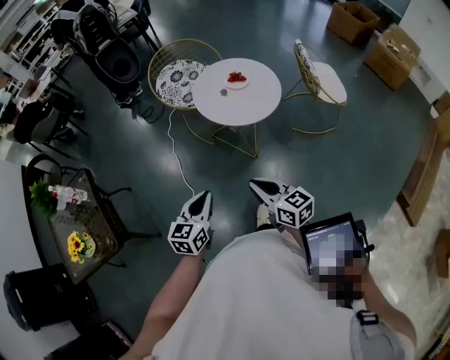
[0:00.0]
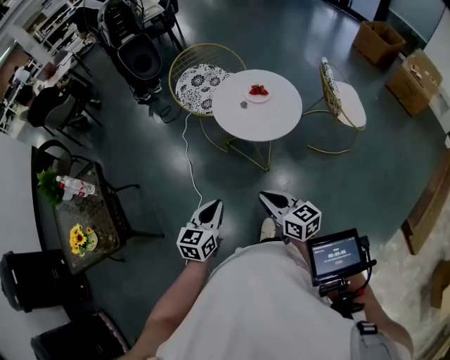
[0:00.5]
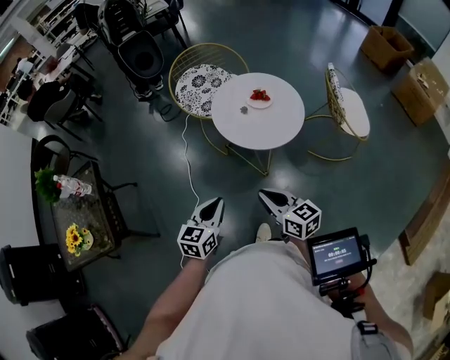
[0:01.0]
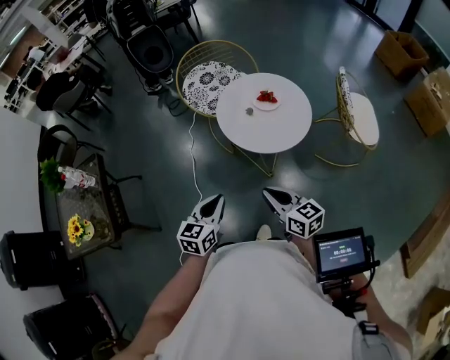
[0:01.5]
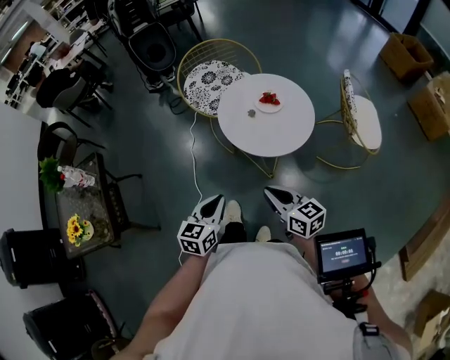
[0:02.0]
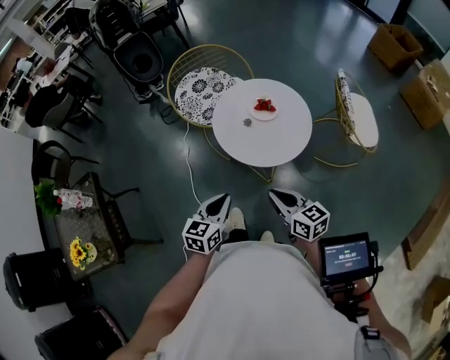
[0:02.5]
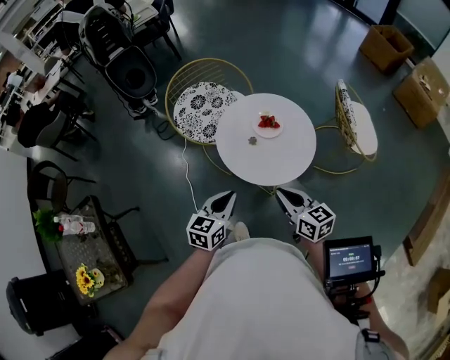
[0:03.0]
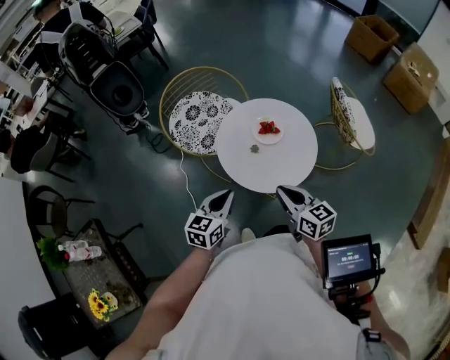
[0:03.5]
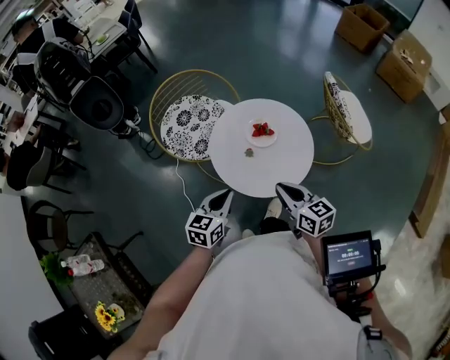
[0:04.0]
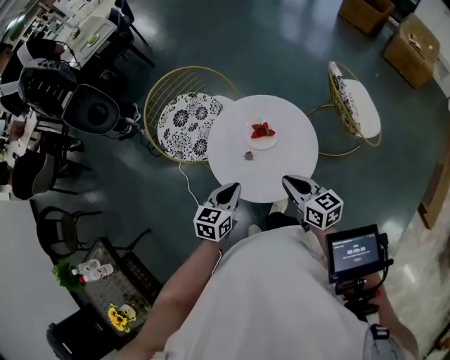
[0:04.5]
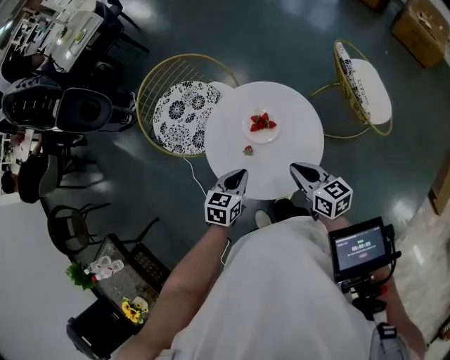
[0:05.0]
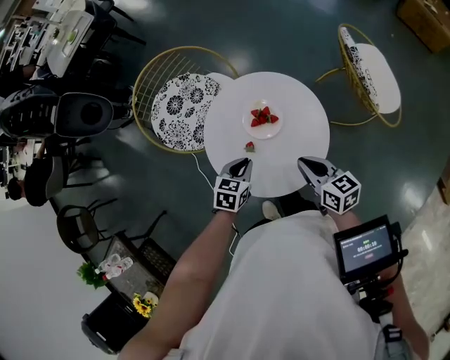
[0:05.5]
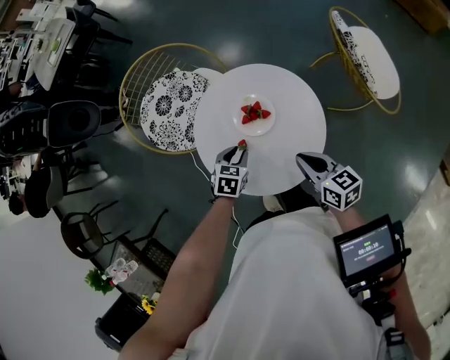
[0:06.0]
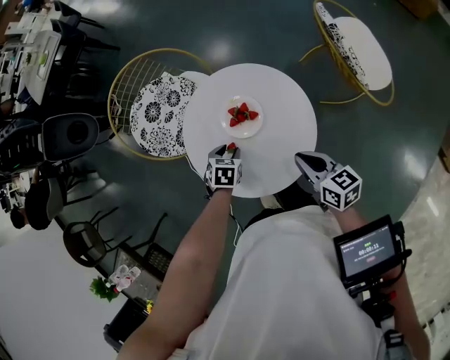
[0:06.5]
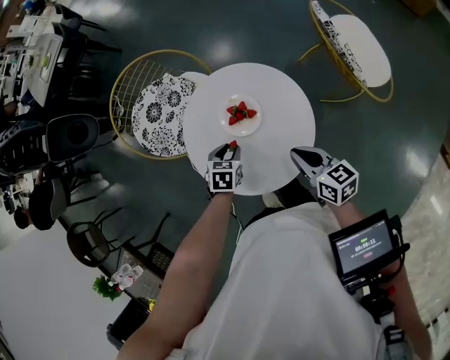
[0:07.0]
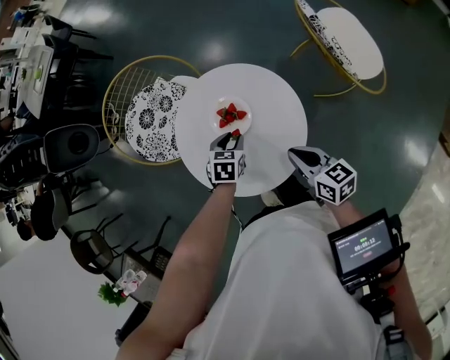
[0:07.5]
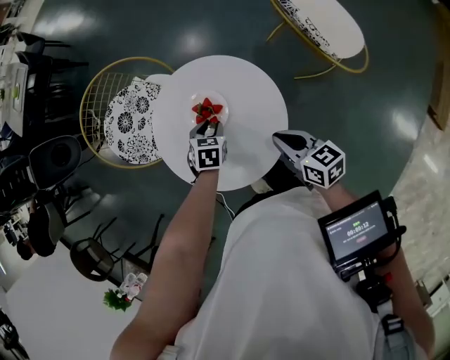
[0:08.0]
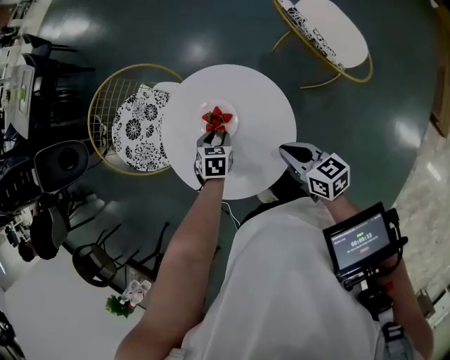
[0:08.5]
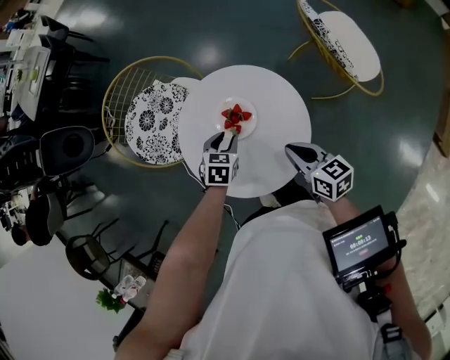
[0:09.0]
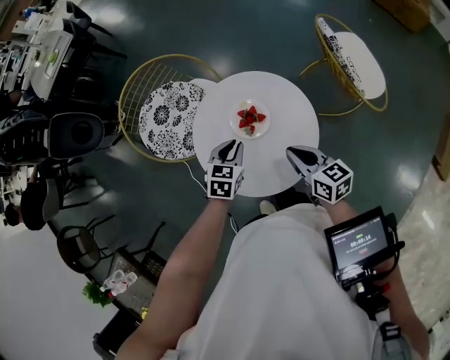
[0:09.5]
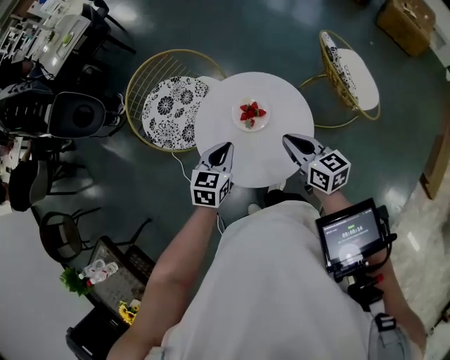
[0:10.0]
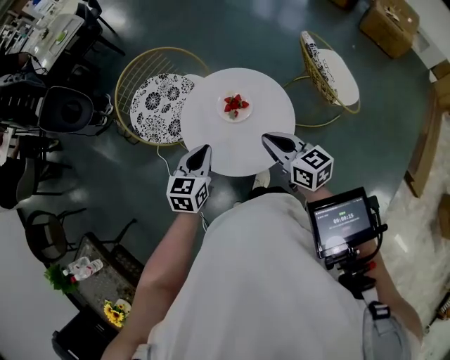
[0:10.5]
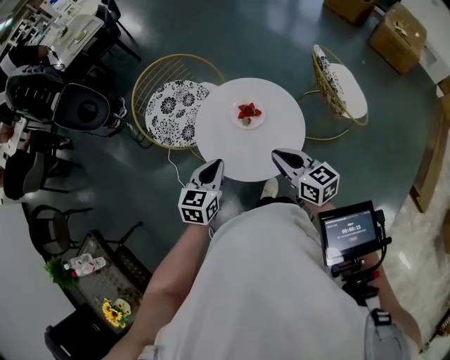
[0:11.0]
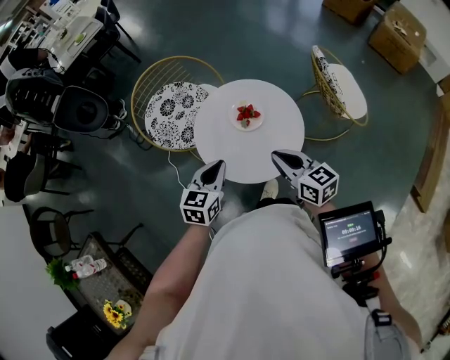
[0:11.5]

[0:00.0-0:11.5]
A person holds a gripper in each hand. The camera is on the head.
0:00.0 to 0:02.0: The two grippers go some 15 cm forward and to the right.
0:02.0 to 0:04.0: The grippers both shift forward by approximately 25 cm. The left gripper changes its angle by approximately 20 degrees. The right gripper turns by some 20 degrees.
0:04.0 to 0:06.0: The left gripper travels downward, forward and to the right by about 30 cm, tips its fingers downward by roughly 30 degrees, and opens its fingers, while the right gripper travels forward, downward and to the right by some 20 cm.
0:06.0 to 0:07.5: The left gripper is displaced to the right by approximately 10 cm, while the right gripper moves some 5 cm.
0:07.5 to 0:09.5: The right gripper goes roughly 10 cm to the left and upward. The left gripper is displaced upward and to the left by approximately 10 cm.
0:09.5 to 0:11.5: The left gripper moves backward, upward and to the left, roughly 20 cm, and swivels about 20 degrees. The right gripper travels upward, backward and to the left by roughly 15 cm.

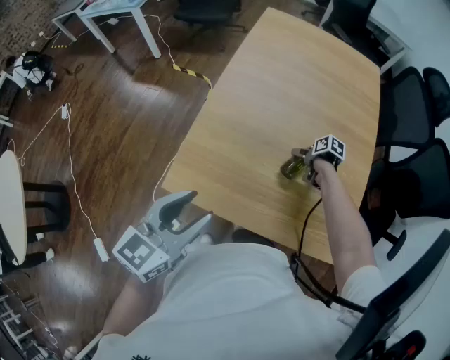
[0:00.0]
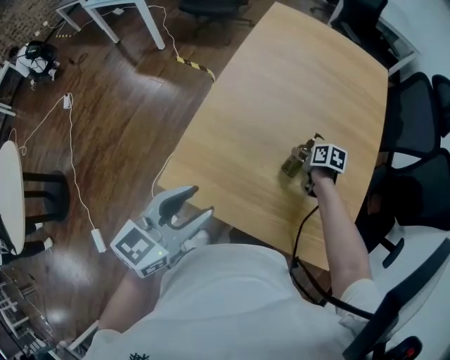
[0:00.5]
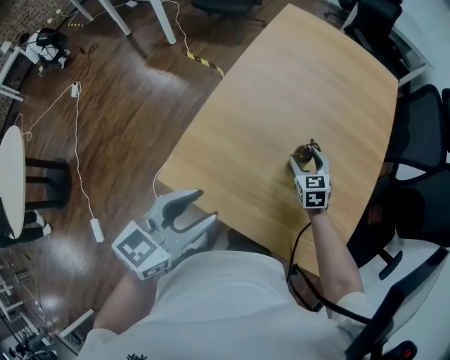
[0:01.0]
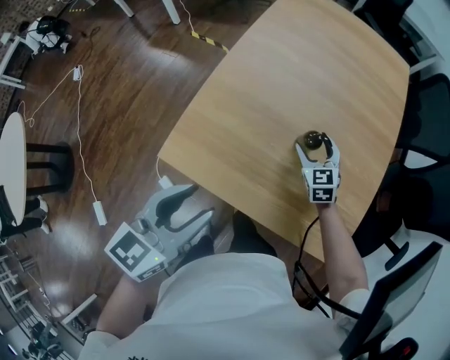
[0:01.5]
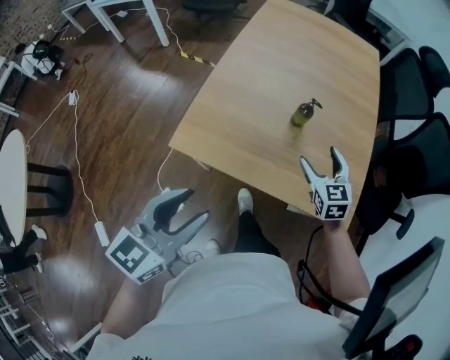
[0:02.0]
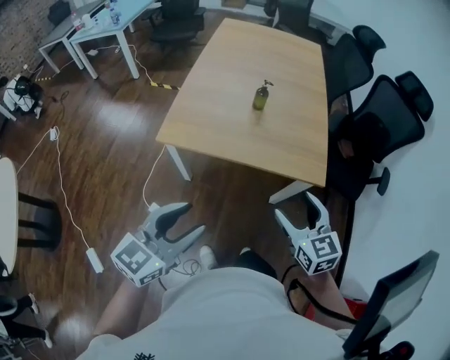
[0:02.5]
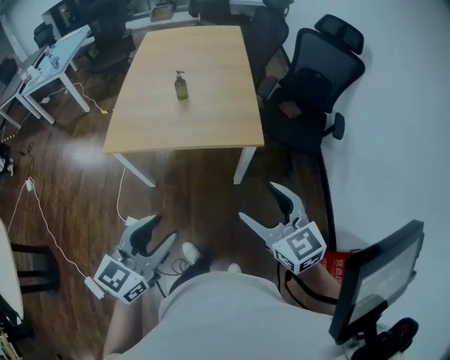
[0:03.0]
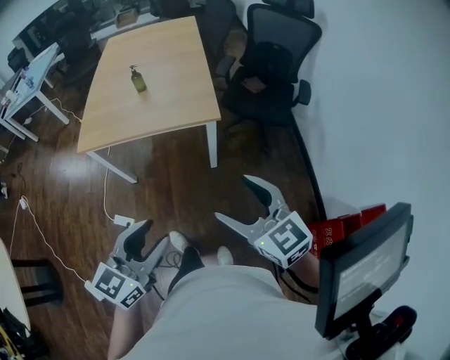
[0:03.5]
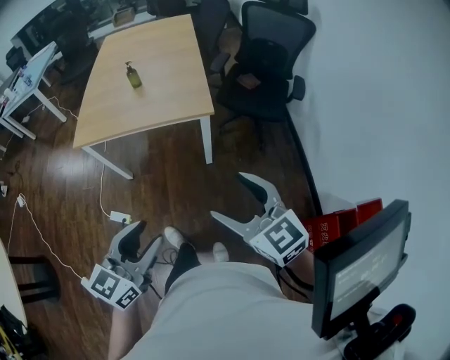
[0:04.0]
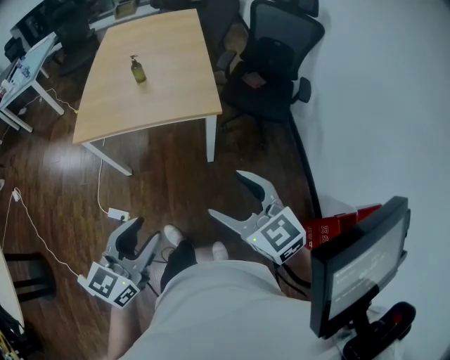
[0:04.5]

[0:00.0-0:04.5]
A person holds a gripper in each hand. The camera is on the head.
0:00.0 to 0:02.0: The right gripper goes about 25 cm upward and backward, and tilts its fingers some 30 degrees upward, while the left gripper travels backward by about 10 cm.
0:02.0 to 0:04.5: The left gripper is displaced backward and to the right by roughly 35 cm, and turns by about 20 degrees; the right gripper moves backward, some 50 cm.

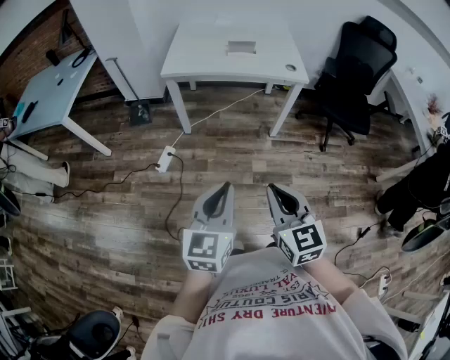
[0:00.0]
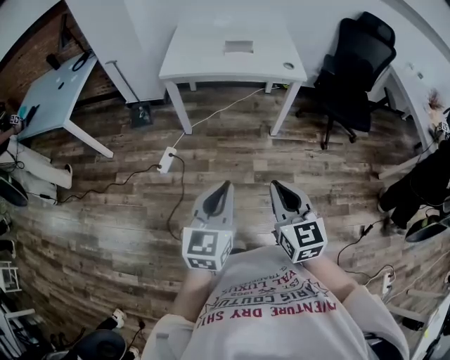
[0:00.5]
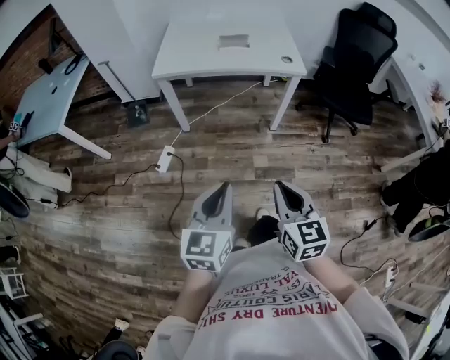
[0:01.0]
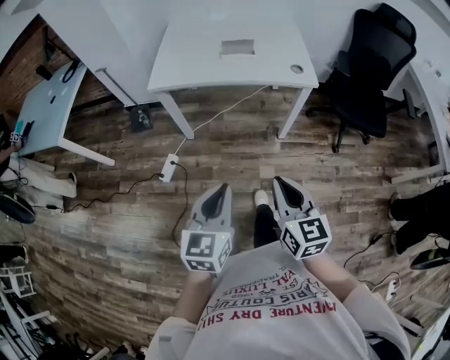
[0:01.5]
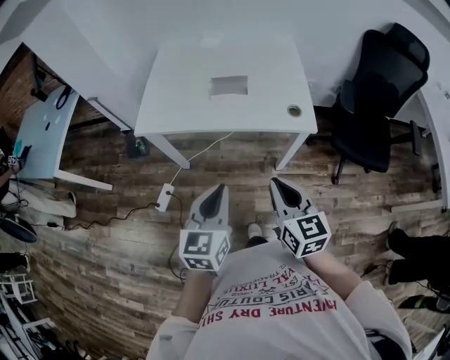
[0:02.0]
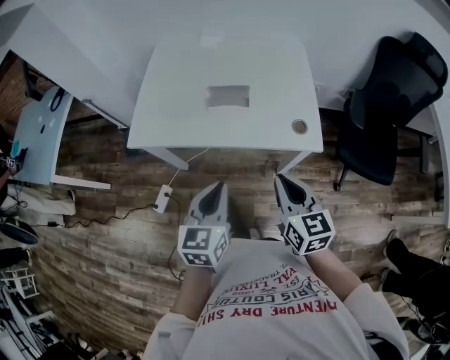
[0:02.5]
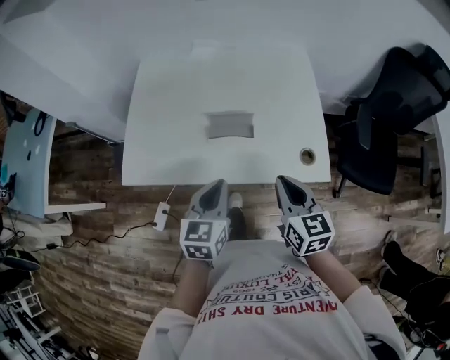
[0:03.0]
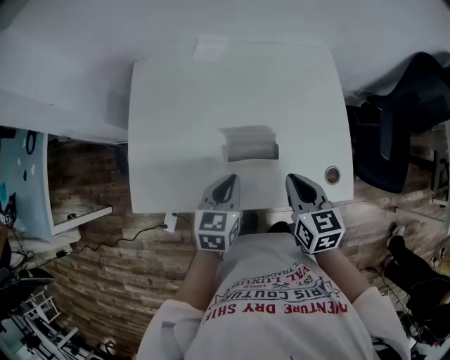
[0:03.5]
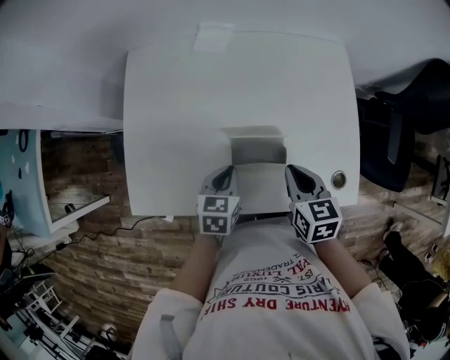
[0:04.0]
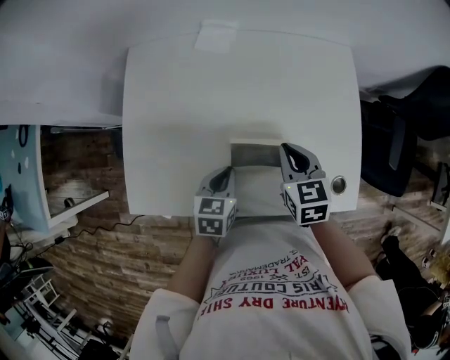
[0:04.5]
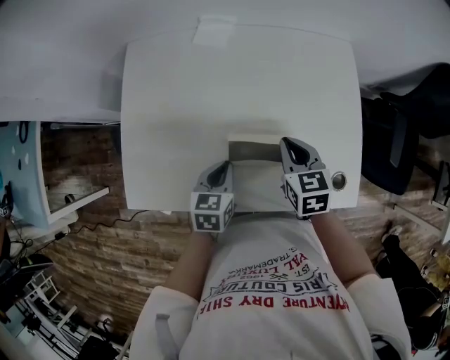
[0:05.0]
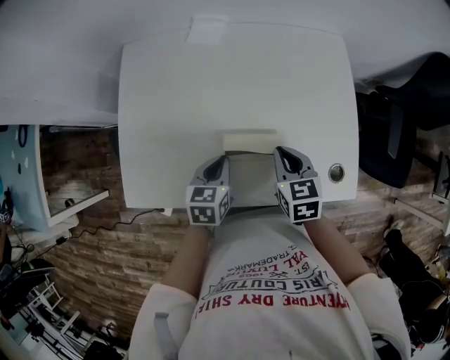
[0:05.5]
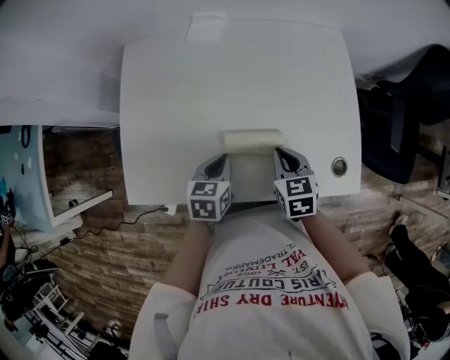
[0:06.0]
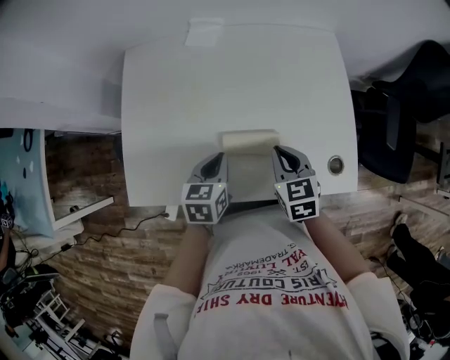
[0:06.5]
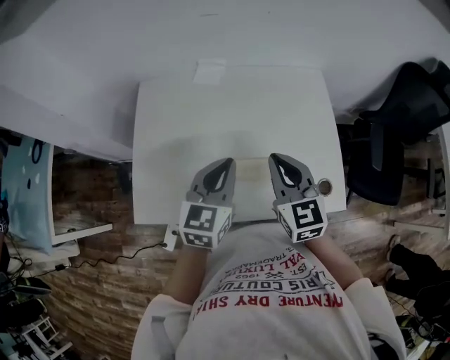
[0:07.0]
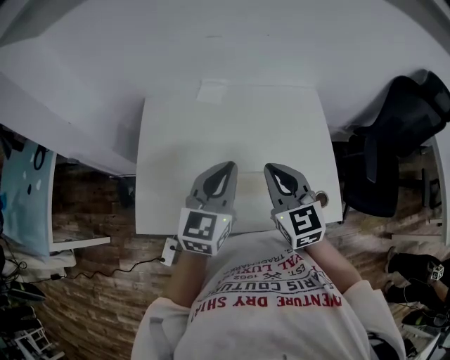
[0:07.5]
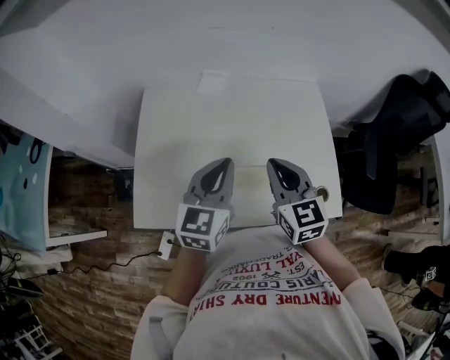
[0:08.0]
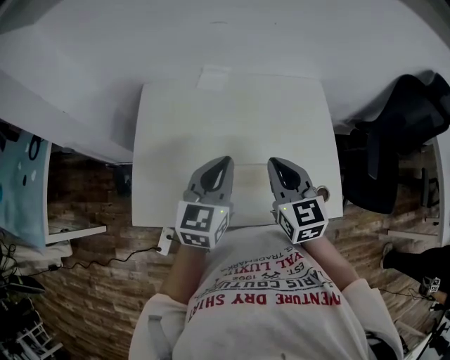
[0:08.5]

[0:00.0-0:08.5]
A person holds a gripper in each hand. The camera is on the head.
0:00.0 to 0:02.0: The grippers both shift forward by some 35 cm.
0:02.0 to 0:04.0: The left gripper moves forward and downward, some 50 cm, and turns by some 30 degrees. The right gripper travels forward by approximately 40 cm, and changes its angle by roughly 30 degrees.
0:06.5 to 0:08.5: Both grippers travel together upward, roughly 15 cm. The left gripper rotates approximately 30 degrees, while the right gripper changes its angle by some 20 degrees.

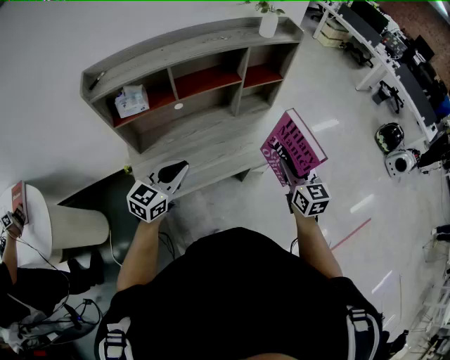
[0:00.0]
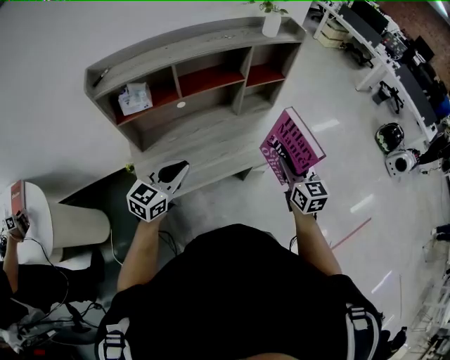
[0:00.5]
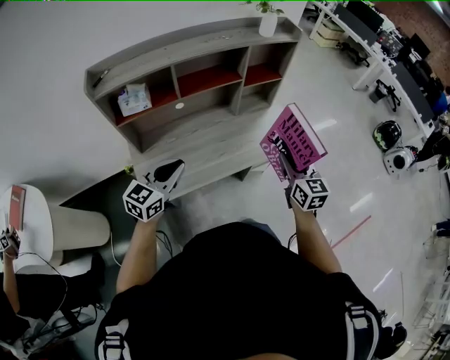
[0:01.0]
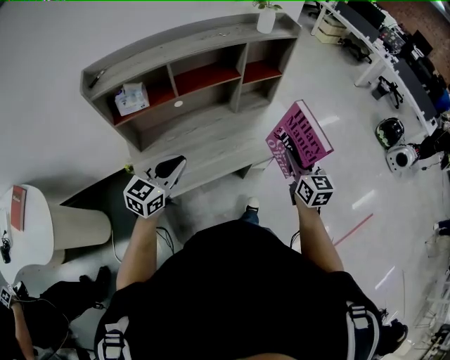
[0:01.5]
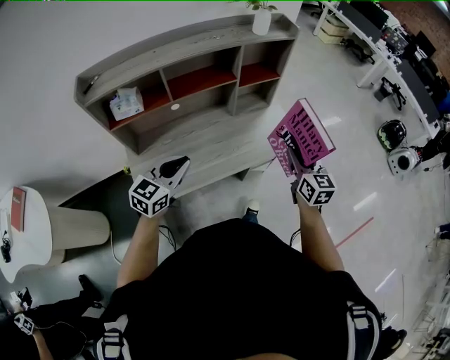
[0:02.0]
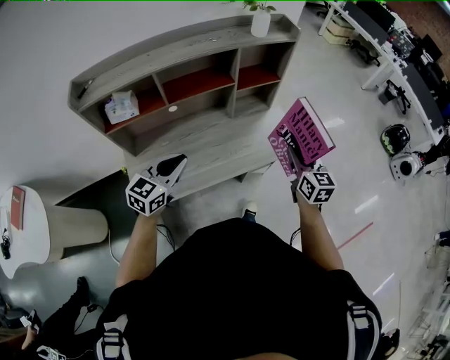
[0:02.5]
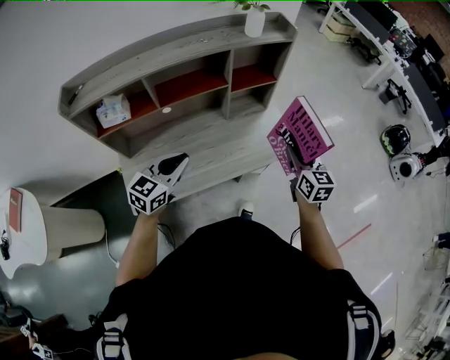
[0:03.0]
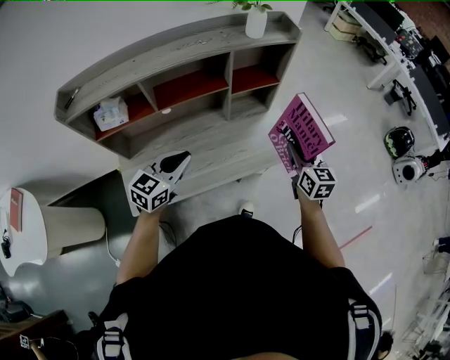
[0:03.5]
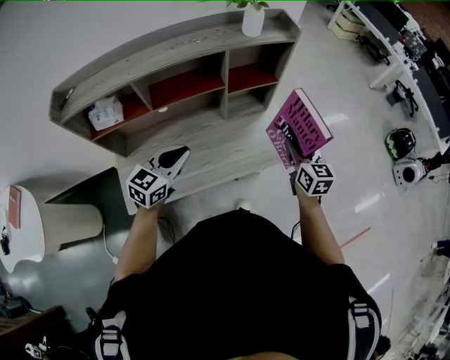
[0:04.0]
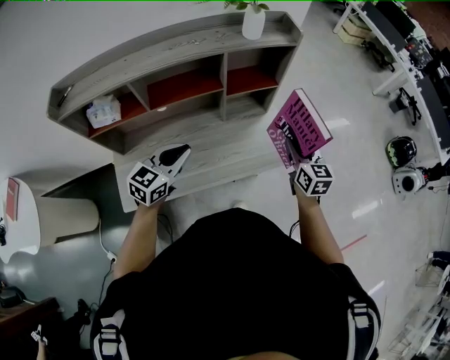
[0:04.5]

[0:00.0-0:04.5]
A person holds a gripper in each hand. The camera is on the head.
0:00.0 to 0:02.0: The right gripper ends up about 5 cm from where it was.
0:02.0 to 0:04.5: The right gripper shifts approximately 20 cm forward; the left gripper heads forward and to the right, covering about 15 cm.
